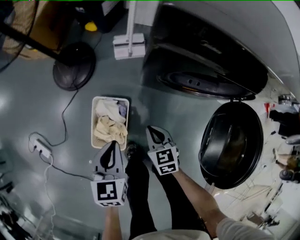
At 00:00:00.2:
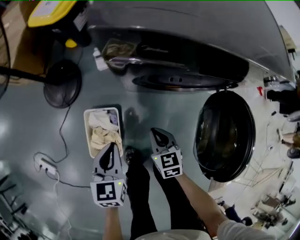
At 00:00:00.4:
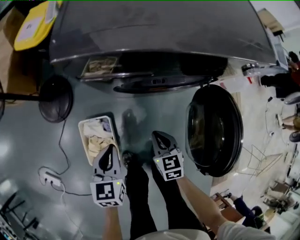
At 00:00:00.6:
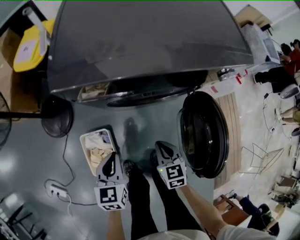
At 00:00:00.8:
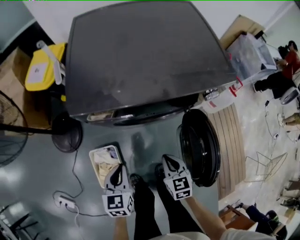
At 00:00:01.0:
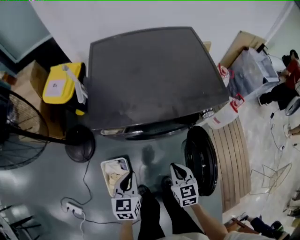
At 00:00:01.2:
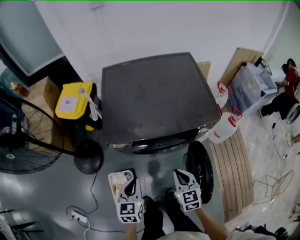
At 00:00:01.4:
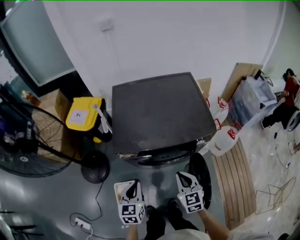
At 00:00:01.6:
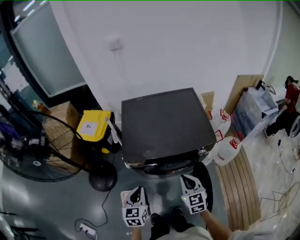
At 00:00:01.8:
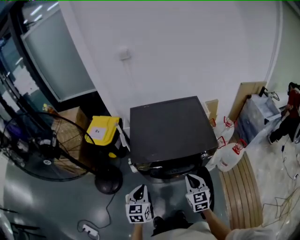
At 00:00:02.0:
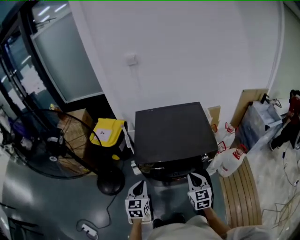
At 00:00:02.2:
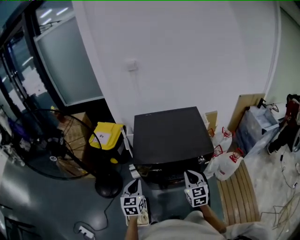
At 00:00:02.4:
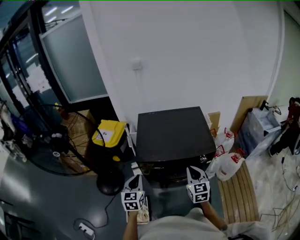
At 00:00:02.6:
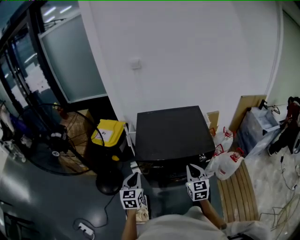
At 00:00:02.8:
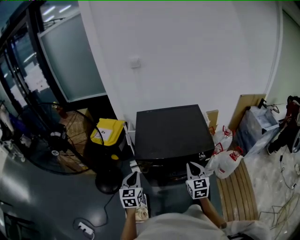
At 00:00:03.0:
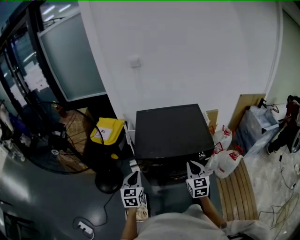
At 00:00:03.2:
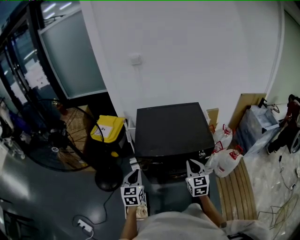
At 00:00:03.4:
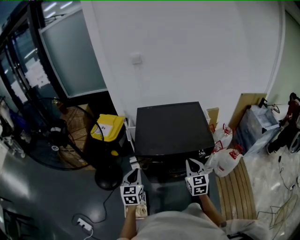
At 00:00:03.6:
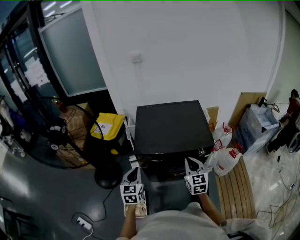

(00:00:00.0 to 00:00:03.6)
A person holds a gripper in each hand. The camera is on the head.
00:00:00.0 - 00:00:01.8: Both grippers move upward and to the right, some 50 cm. The left gripper turns by some 20 degrees. Meanwhile the right gripper changes its angle by about 30 degrees.
00:00:01.8 - 00:00:03.6: The grippers both shift upward by approximately 5 cm.

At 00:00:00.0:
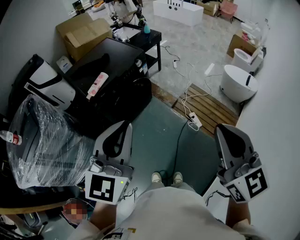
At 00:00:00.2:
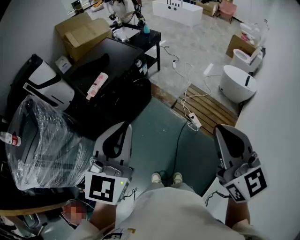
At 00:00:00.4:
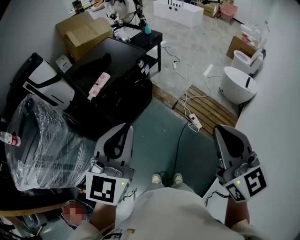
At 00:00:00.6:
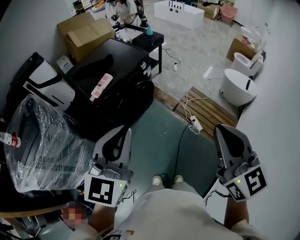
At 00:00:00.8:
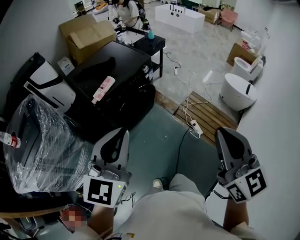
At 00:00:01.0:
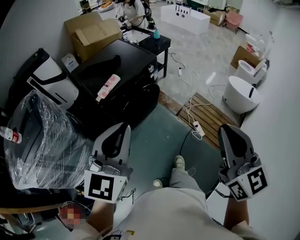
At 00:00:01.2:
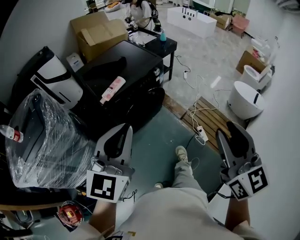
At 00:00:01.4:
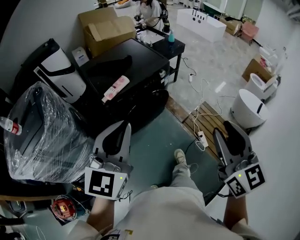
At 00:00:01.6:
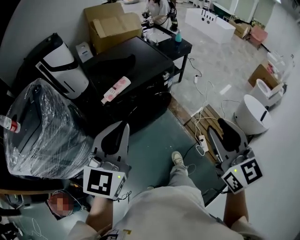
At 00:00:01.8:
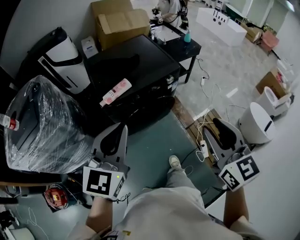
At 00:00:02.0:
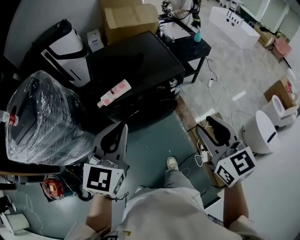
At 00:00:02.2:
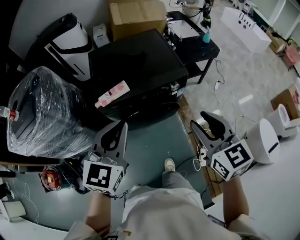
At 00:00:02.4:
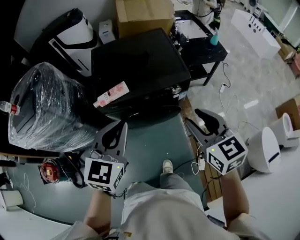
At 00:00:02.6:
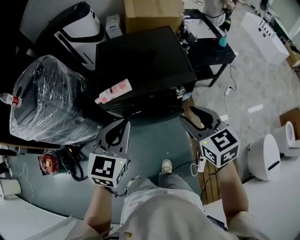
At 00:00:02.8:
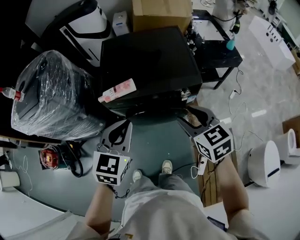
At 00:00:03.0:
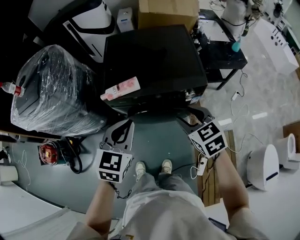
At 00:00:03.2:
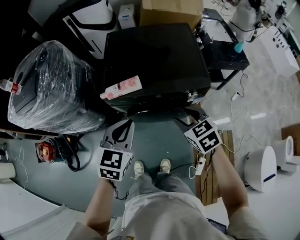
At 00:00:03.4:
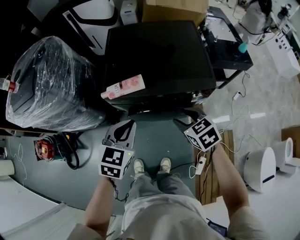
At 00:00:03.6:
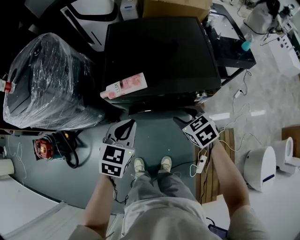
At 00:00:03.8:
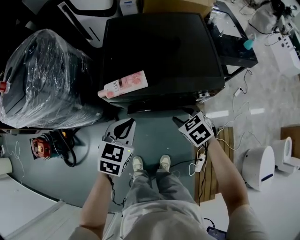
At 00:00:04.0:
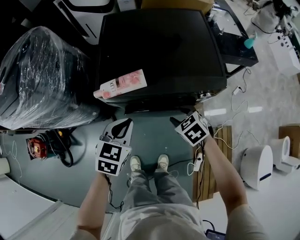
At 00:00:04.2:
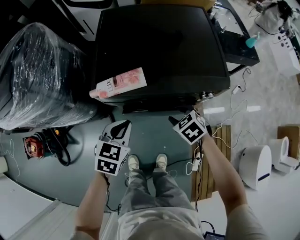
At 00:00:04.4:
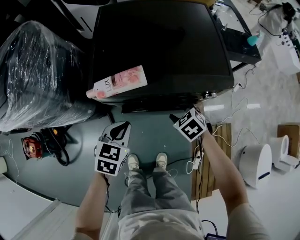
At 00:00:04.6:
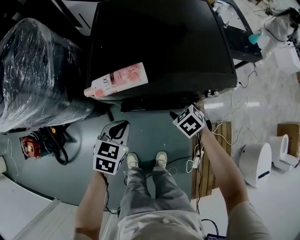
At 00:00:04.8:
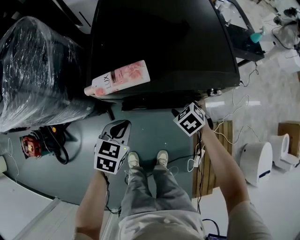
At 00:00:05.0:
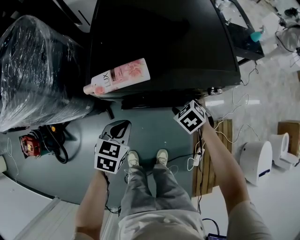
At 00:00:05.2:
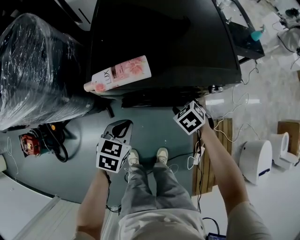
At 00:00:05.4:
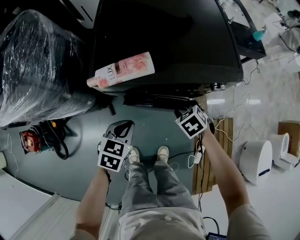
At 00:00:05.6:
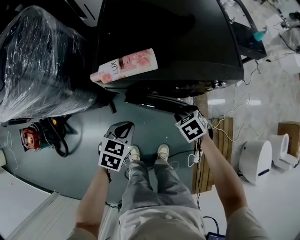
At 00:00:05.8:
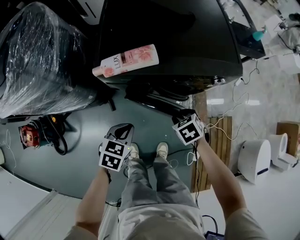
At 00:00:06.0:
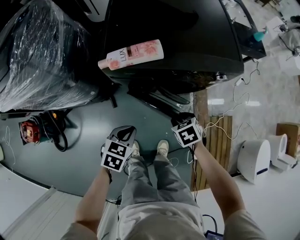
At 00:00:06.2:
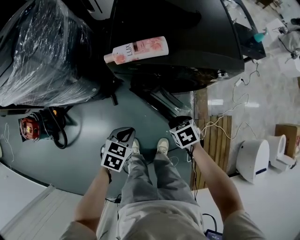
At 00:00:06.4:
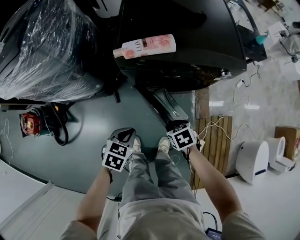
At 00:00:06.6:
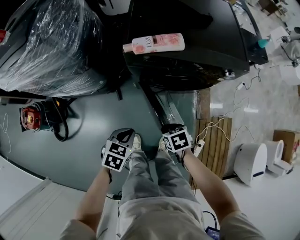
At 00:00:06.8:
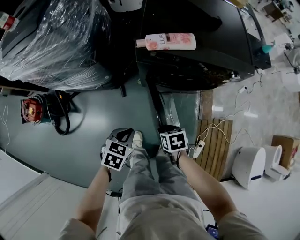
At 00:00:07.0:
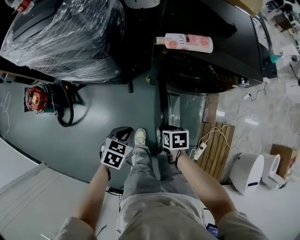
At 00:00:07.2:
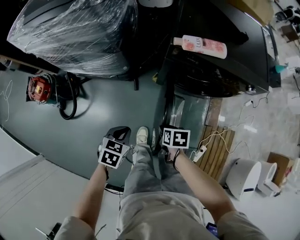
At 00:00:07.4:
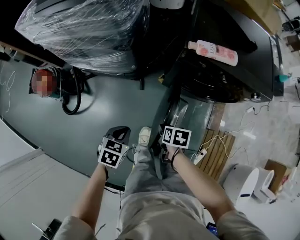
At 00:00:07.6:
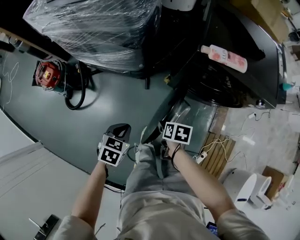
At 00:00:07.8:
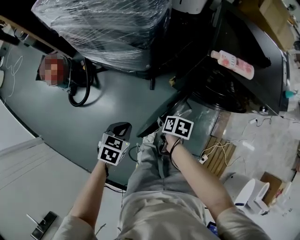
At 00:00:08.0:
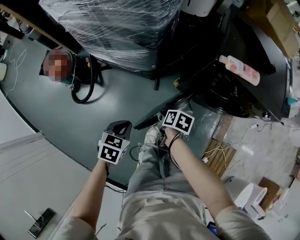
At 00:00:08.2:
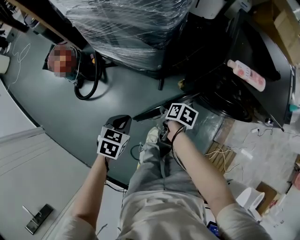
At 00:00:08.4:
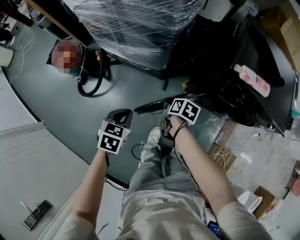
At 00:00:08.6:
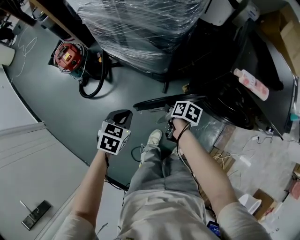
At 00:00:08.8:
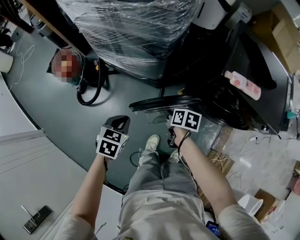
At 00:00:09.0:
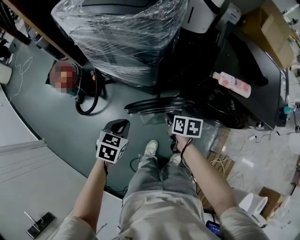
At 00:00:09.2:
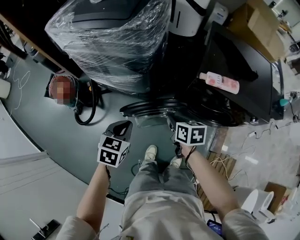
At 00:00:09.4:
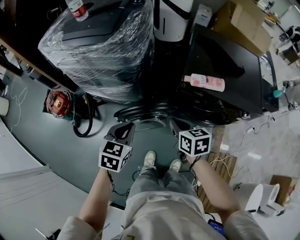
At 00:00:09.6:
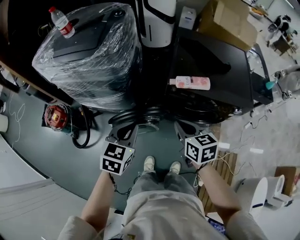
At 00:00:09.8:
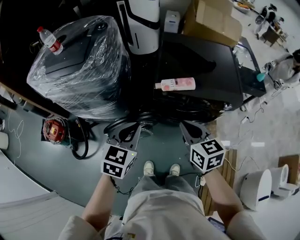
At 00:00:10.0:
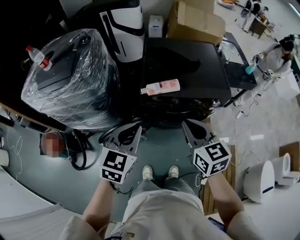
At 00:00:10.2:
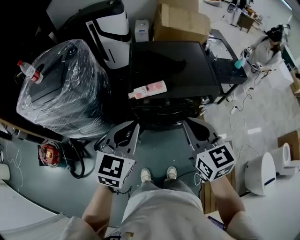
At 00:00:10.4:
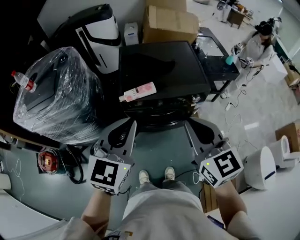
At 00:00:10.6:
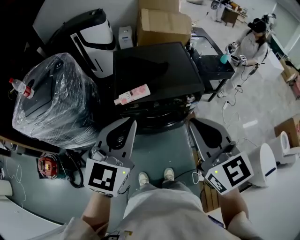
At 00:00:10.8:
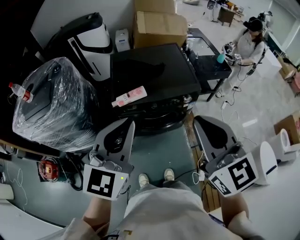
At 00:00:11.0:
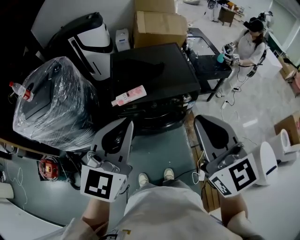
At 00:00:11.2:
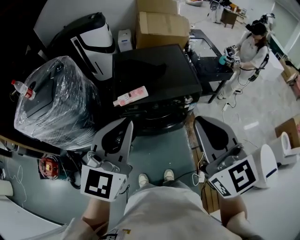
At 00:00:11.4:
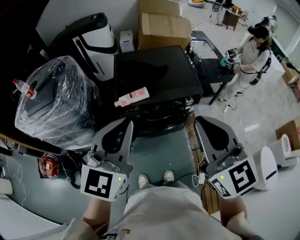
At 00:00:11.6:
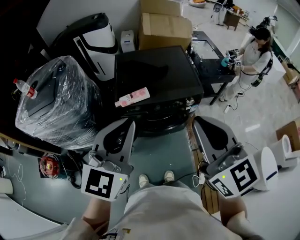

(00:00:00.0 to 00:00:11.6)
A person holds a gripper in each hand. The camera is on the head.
00:00:00.0 - 00:00:01.4: The left gripper heads to the left and forward, covering about 15 cm, while the right gripper shifts roughly 15 cm forward and to the left, and opens.
00:00:01.4 - 00:00:02.8: The left gripper shifts by approximately 30 cm, and turns by roughly 40 degrees. The right gripper ends up approximately 50 cm from where it was, and rotates approximately 50 degrees.
00:00:02.8 - 00:00:04.4: The two grippers go approximately 25 cm downward. The left gripper changes its angle by roughly 20 degrees; the right gripper tips its fingers downward by approximately 30 degrees.
00:00:04.4 - 00:00:05.8: The right gripper heads backward, covering about 10 cm. The left gripper heads backward and downward, covering about 10 cm.
00:00:05.8 - 00:00:07.2: Both grippers travel together to the left and backward, approximately 30 cm. The right gripper turns by some 30 degrees.
00:00:07.2 - 00:00:08.8: Both grippers move to the left and forward, roughly 20 cm.
00:00:08.8 - 00:00:10.2: The left gripper shifts by roughly 50 cm, and points its fingers approximately 40 degrees further upward; the right gripper shifts approximately 40 cm upward, and angles its fingers upward, by some 40 degrees.
00:00:10.2 - 00:00:11.6: The right gripper shifts about 20 cm upward, to the right and backward, while the left gripper heads upward and to the right, covering approximately 15 cm.

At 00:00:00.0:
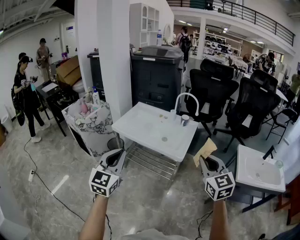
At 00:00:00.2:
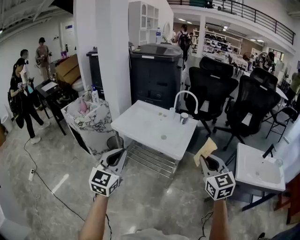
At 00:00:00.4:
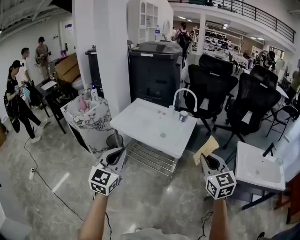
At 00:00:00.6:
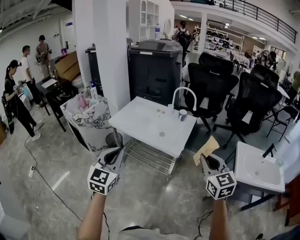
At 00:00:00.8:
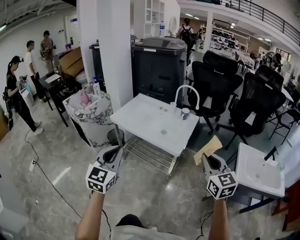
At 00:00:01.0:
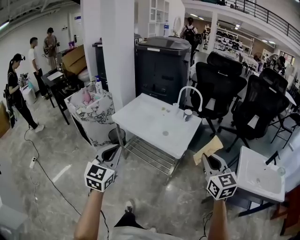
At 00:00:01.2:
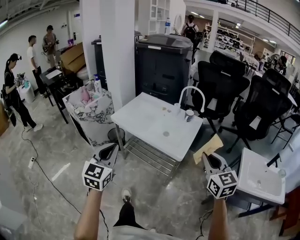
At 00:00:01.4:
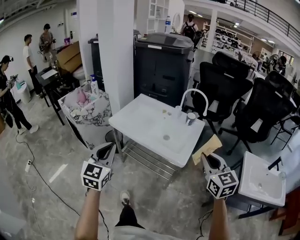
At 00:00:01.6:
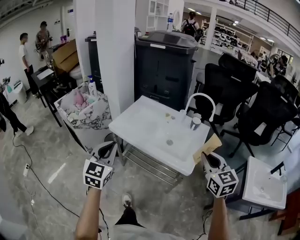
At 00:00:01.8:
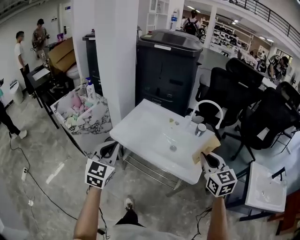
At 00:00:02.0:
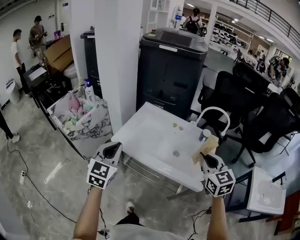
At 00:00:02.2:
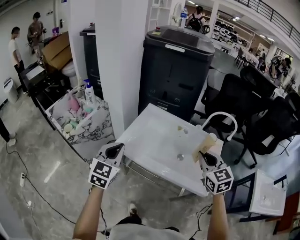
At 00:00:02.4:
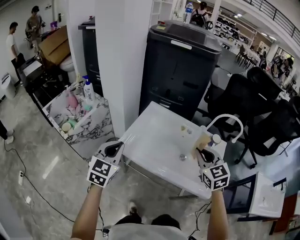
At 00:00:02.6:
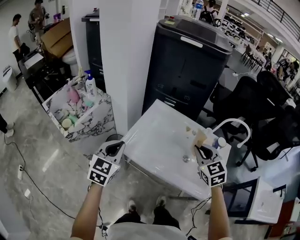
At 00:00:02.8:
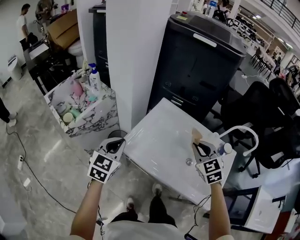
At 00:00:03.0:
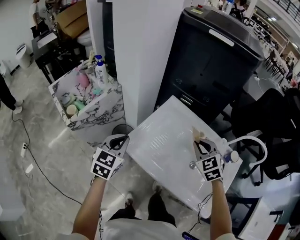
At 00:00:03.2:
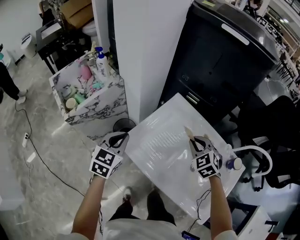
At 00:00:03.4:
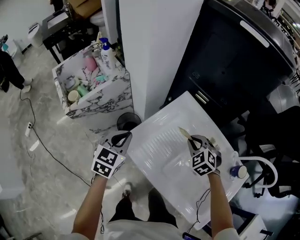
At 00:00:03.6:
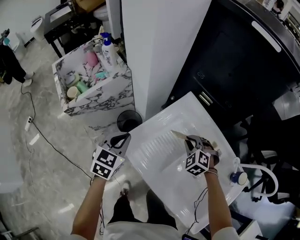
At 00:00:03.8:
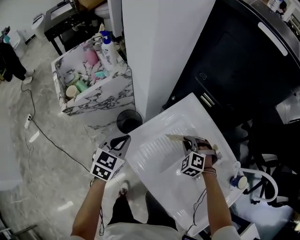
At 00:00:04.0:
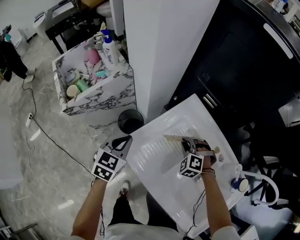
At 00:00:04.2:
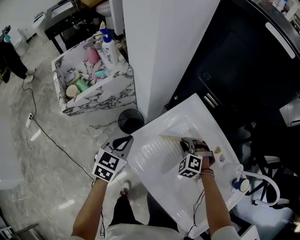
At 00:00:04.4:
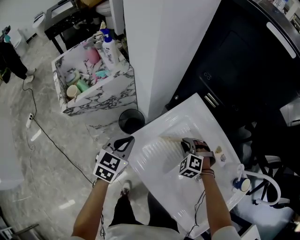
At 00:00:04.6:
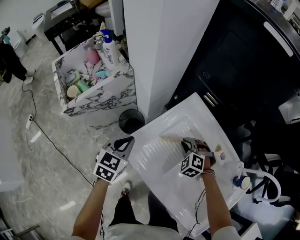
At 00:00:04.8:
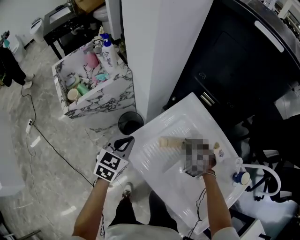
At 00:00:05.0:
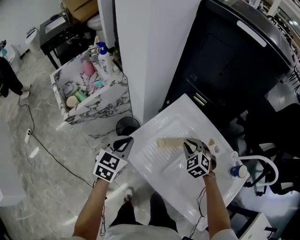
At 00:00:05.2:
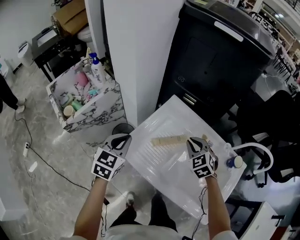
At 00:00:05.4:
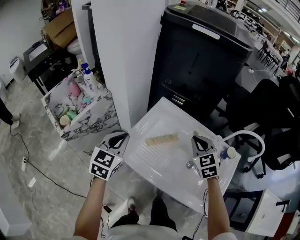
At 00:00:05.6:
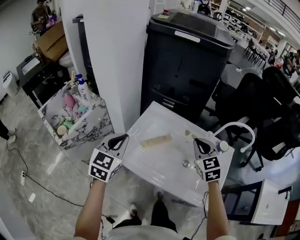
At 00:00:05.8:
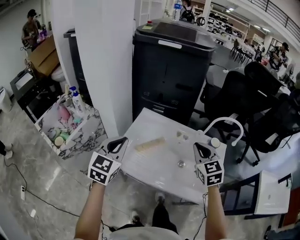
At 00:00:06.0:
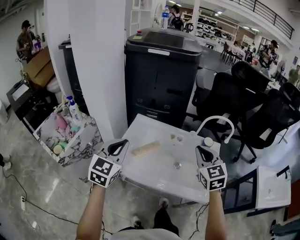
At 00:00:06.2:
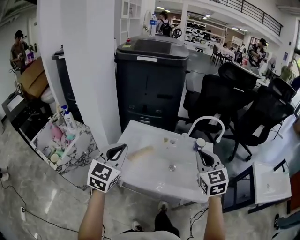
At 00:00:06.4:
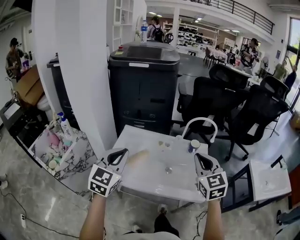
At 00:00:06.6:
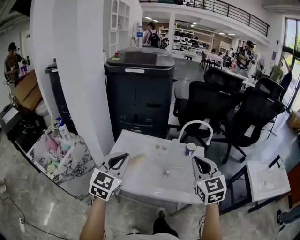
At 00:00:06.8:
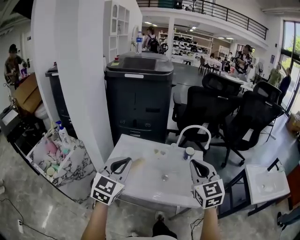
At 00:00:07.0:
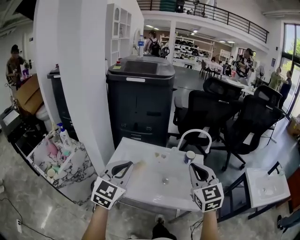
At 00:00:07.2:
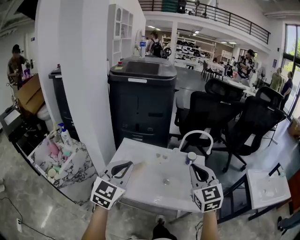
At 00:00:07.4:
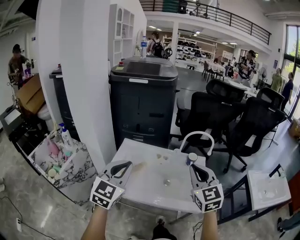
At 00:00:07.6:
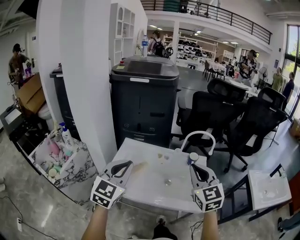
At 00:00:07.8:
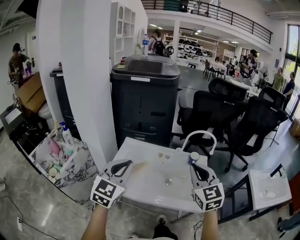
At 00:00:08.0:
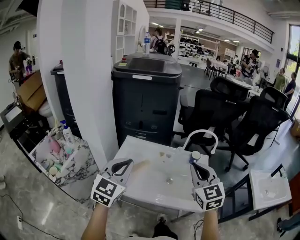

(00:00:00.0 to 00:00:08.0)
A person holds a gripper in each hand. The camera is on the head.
00:00:00.0 - 00:00:01.6: Both grippers travel together forward, some 20 cm.
00:00:01.6 - 00:00:03.2: The left gripper is displaced forward and downward by about 40 cm, and swivels some 20 degrees, while the right gripper moves forward, to the left and downward, some 60 cm, and angles its fingers downward, by roughly 30 degrees.
00:00:03.2 - 00:00:04.8: The right gripper goes about 15 cm downward, and changes its angle by about 20 degrees, while the left gripper is displaced downward by about 5 cm.
00:00:04.8 - 00:00:06.4: Both grippers move upward, roughly 30 cm. The left gripper rotates about 40 degrees, while the right gripper points its fingers roughly 40 degrees further upward.
00:00:06.4 - 00:00:08.0: The grippers make only small movements.
